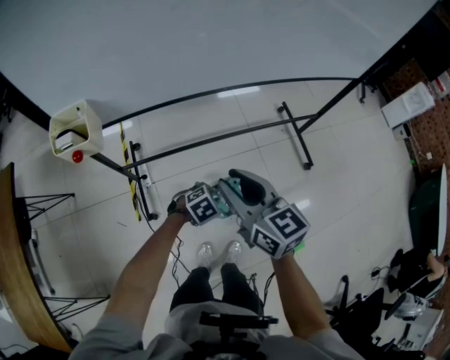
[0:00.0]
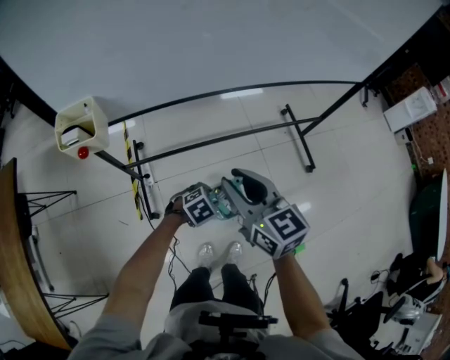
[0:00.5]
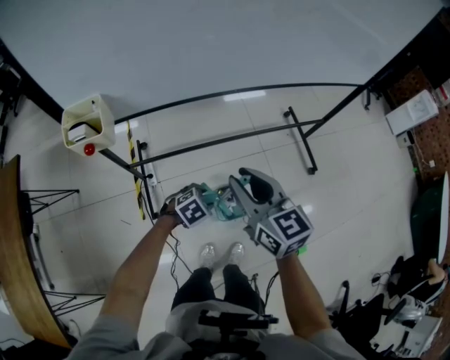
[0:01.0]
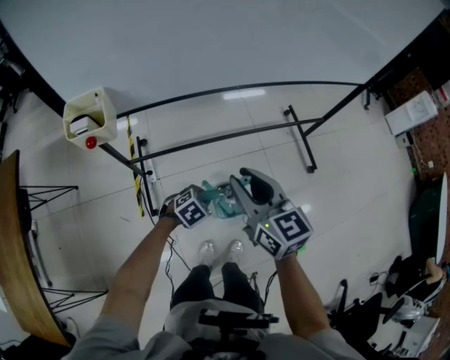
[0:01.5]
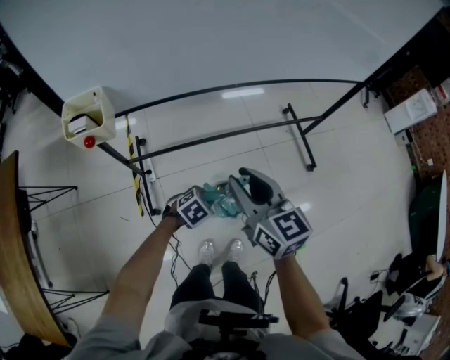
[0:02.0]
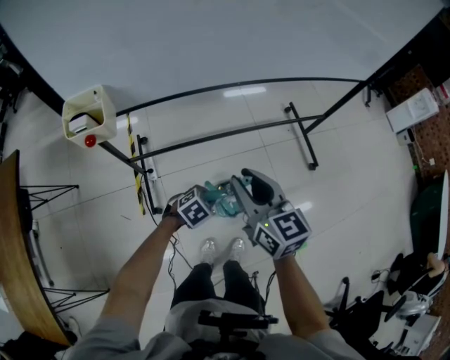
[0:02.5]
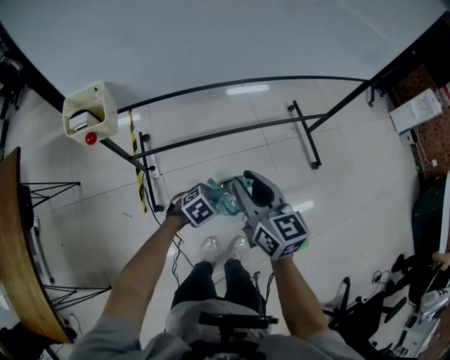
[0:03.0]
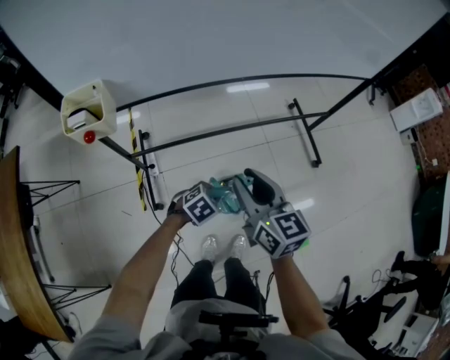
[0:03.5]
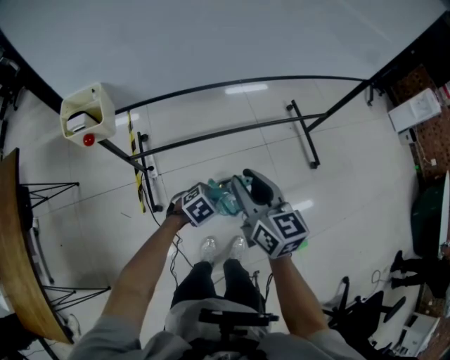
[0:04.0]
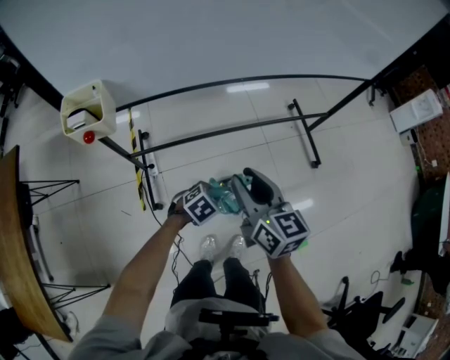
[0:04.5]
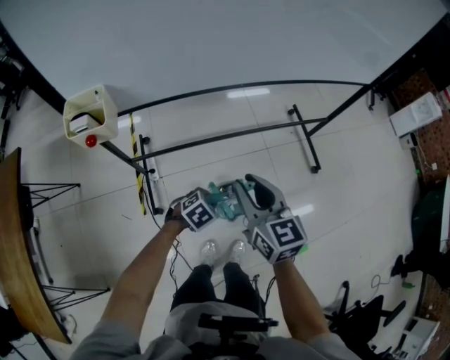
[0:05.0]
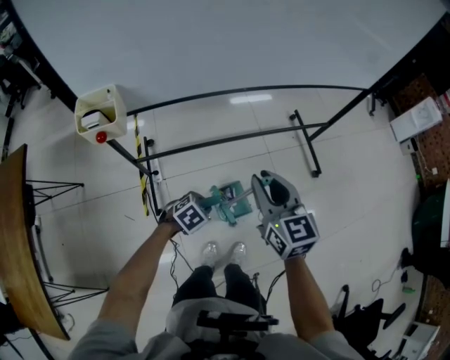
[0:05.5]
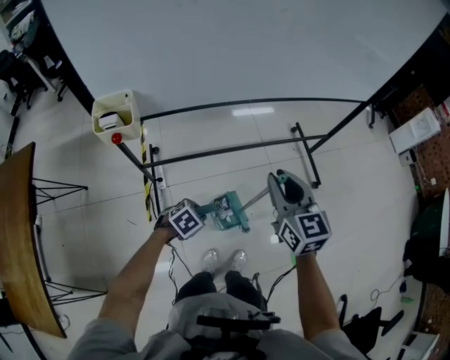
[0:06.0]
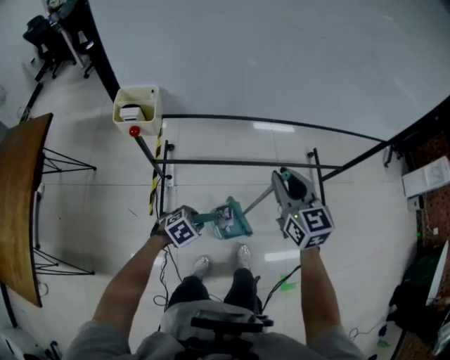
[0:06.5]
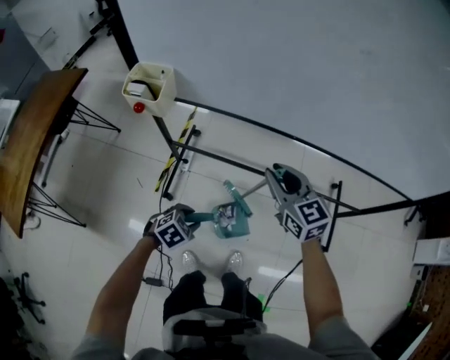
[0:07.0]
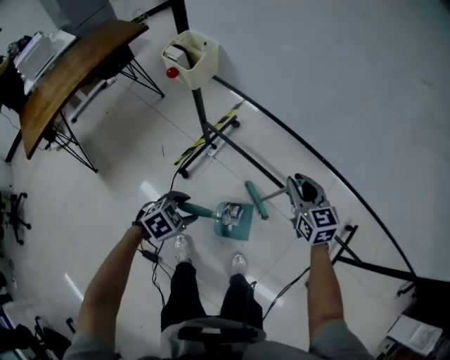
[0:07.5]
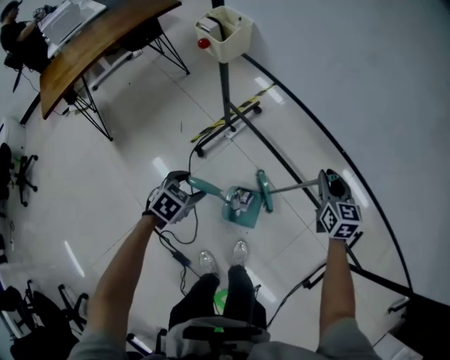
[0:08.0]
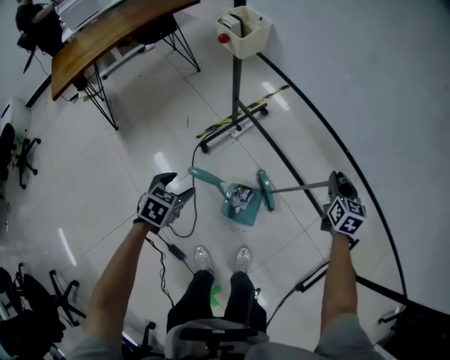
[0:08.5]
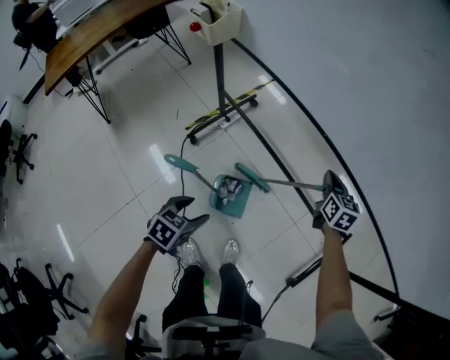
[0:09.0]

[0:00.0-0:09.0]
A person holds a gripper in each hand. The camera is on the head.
0:00.0 to 0:02.0: The left gripper ends up roughly 5 cm from where it was.
0:02.0 to 0:04.5: The grippers move only a little.
0:04.5 to 0:07.0: The left gripper rotates approximately 30 degrees, while the right gripper moves about 15 cm, and changes its angle by roughly 50 degrees.
0:07.0 to 0:09.0: The left gripper shifts by approximately 15 cm, twists some 50 degrees counterclockwise, seen from behind, and opens its fingers. Meanwhile the right gripper shifts by approximately 25 cm, and closes.

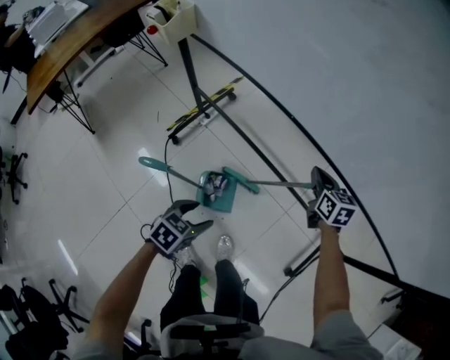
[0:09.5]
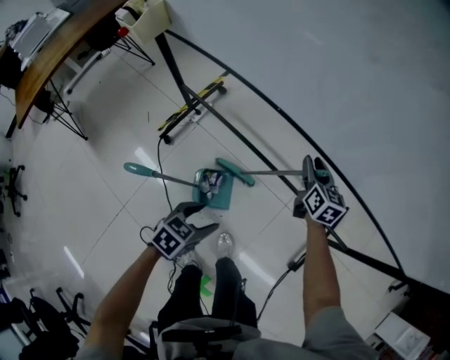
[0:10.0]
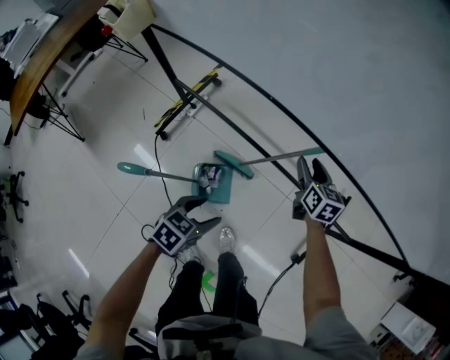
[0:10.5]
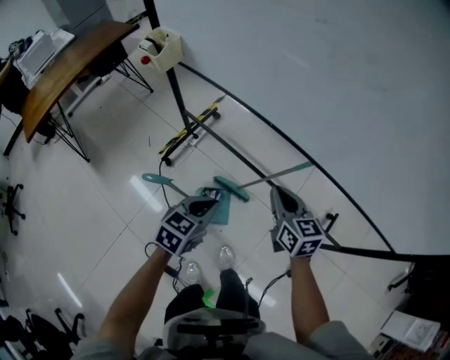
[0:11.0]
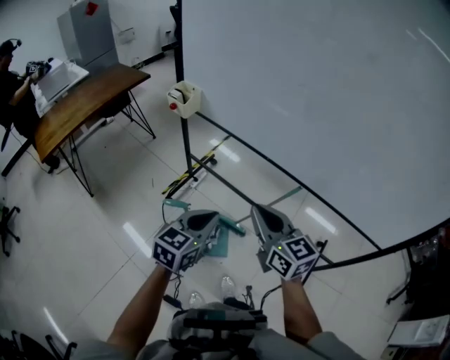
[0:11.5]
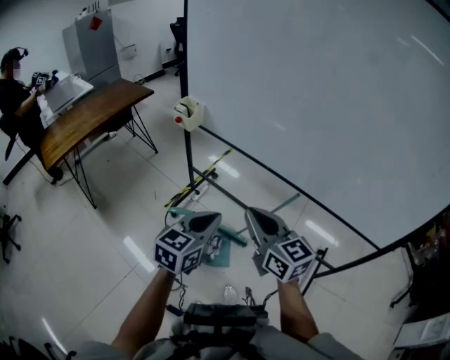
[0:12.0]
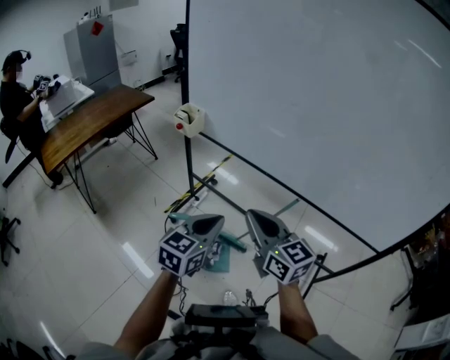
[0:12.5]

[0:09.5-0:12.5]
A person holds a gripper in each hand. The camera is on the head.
0:09.5 to 0:11.0: The right gripper travels backward, upward and to the left by approximately 20 cm, and opens and closes again; the left gripper travels upward and forward by roughly 15 cm, and closes.
0:11.0 to 0:12.5: The left gripper goes some 20 cm upward, and changes its angle by about 20 degrees; the right gripper heads upward, to the left and backward, covering about 30 cm, and rotates roughly 20 degrees.

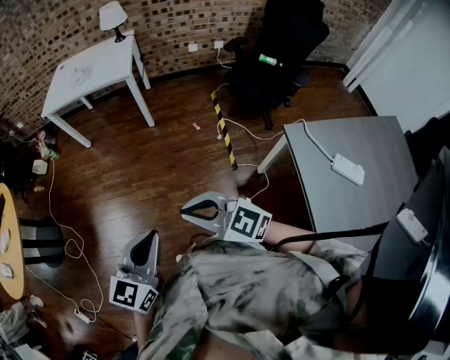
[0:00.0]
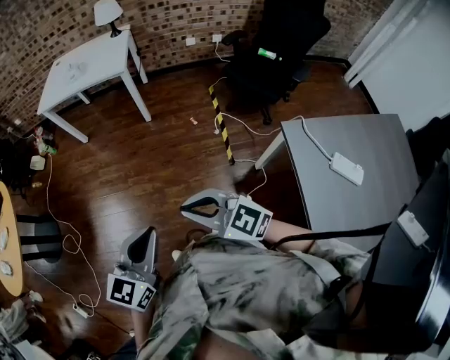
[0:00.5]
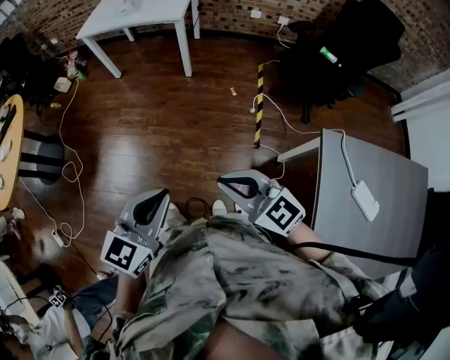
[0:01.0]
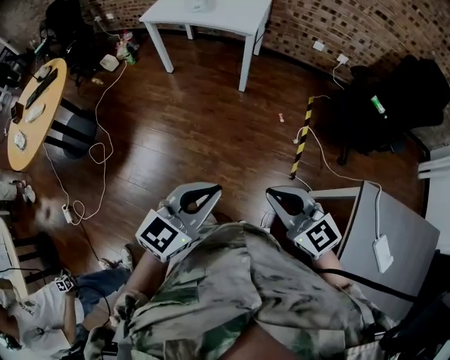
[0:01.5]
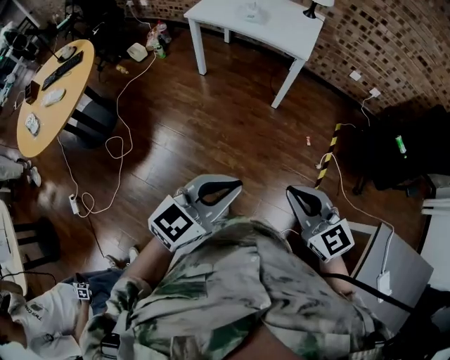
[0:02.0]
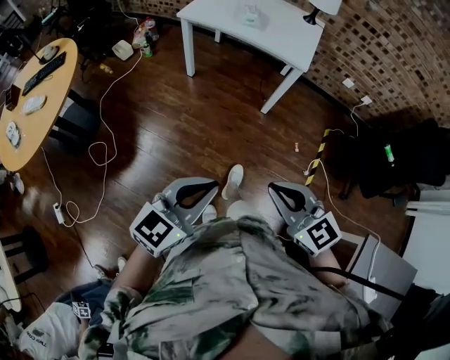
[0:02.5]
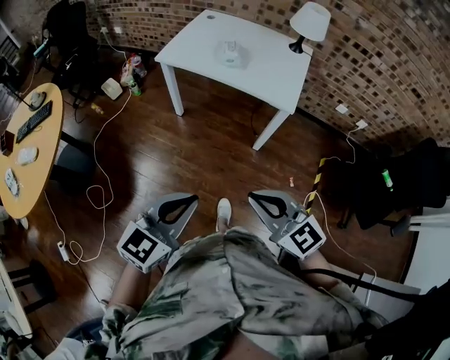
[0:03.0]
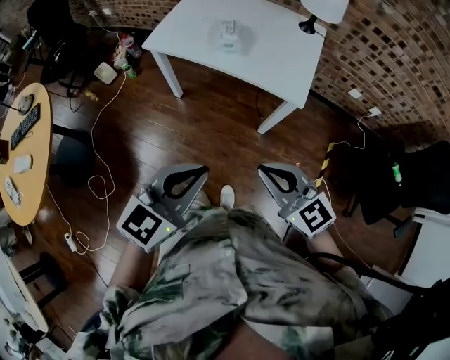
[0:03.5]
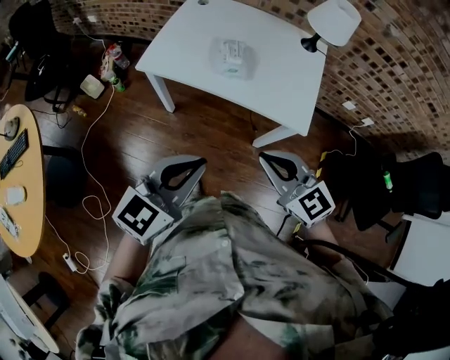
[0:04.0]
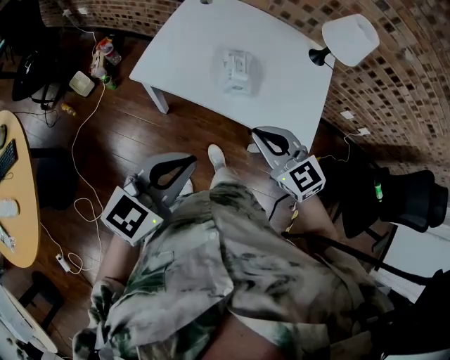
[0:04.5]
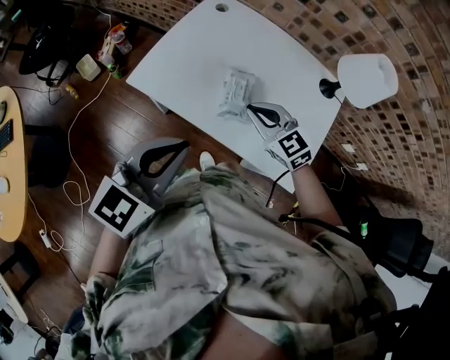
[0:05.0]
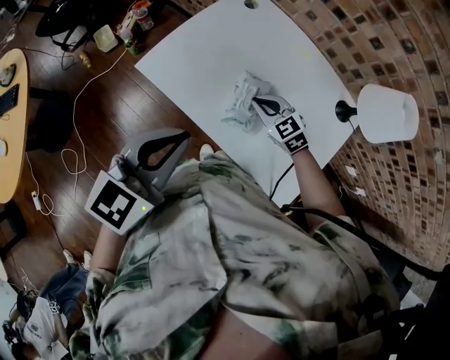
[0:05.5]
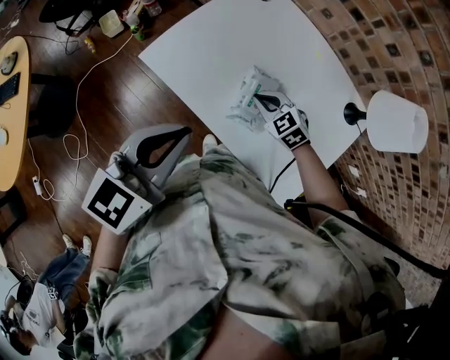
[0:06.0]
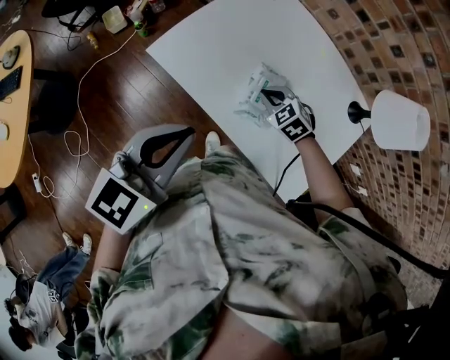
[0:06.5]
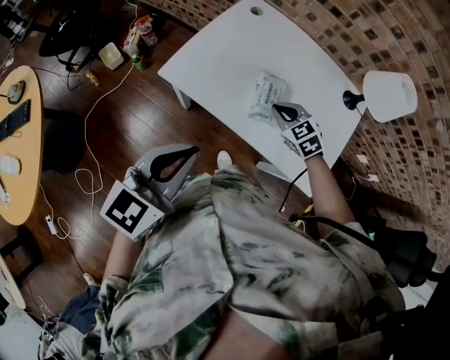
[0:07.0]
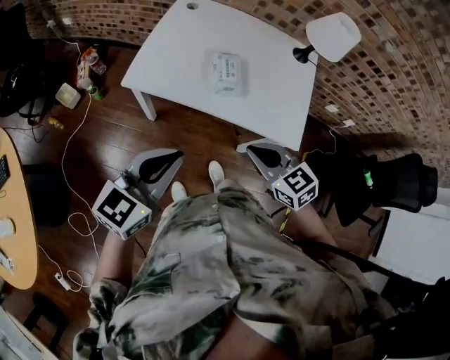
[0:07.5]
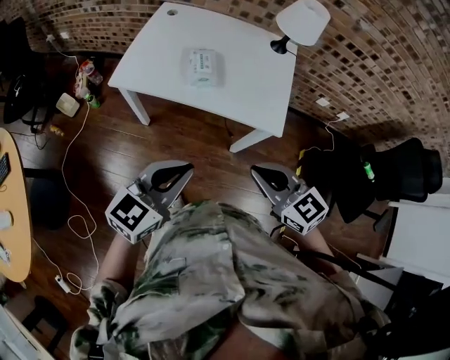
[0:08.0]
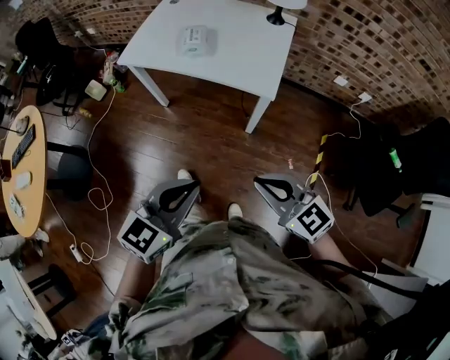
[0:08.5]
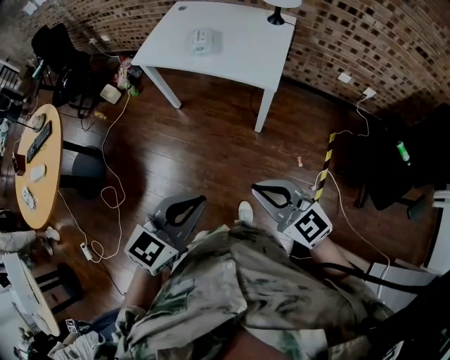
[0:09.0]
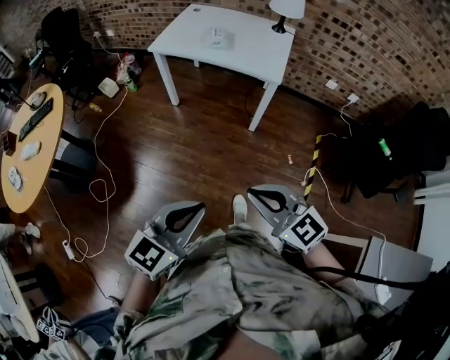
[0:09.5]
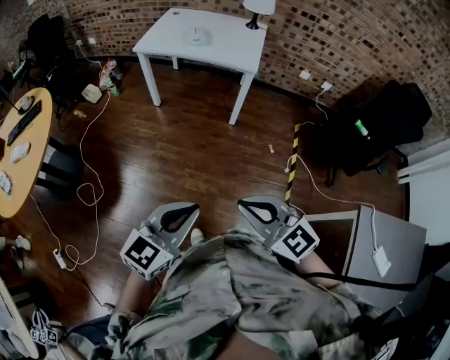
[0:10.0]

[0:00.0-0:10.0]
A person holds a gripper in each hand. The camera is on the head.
0:00.0 to 0:02.0: Both grippers travel together forward and to the left, some 20 cm.
0:02.0 to 0:04.0: The two grippers travel together, forward, roughly 60 cm.
0:04.0 to 0:06.0: The left gripper moves approximately 30 cm, and swivels some 30 degrees; the right gripper moves some 50 cm, and rotates approximately 40 degrees.
0:06.0 to 0:08.0: The left gripper moves some 25 cm, and turns by roughly 30 degrees; the right gripper shifts by some 50 cm, and turns by some 40 degrees.
0:08.0 to 0:10.0: The pair of grippers is taken backward, some 60 cm.

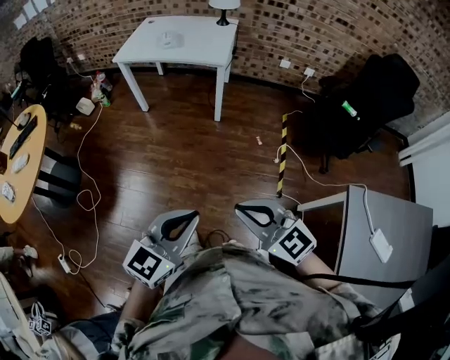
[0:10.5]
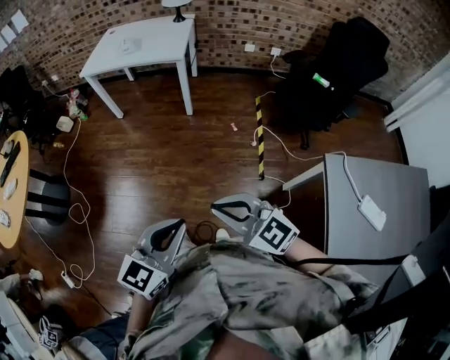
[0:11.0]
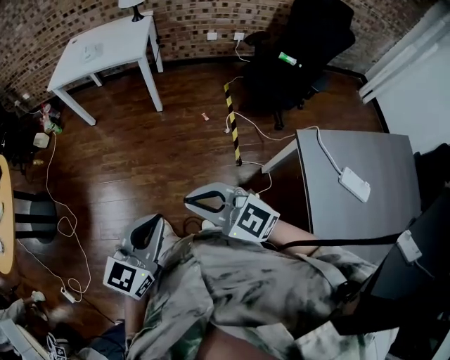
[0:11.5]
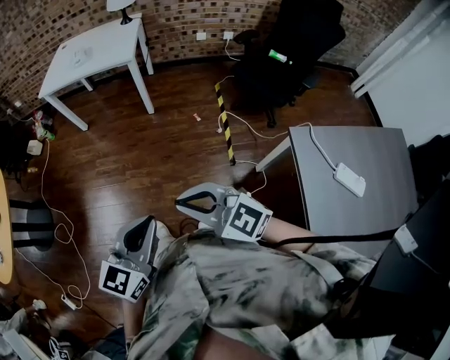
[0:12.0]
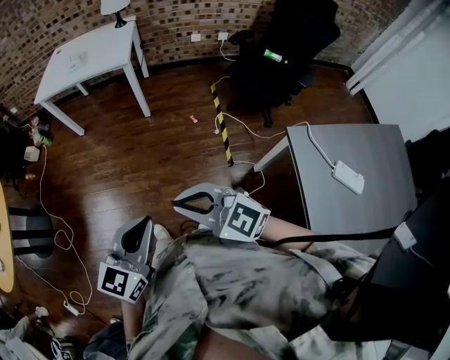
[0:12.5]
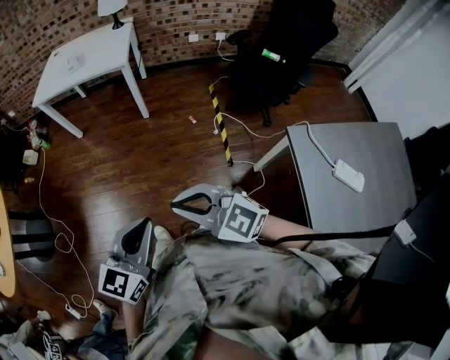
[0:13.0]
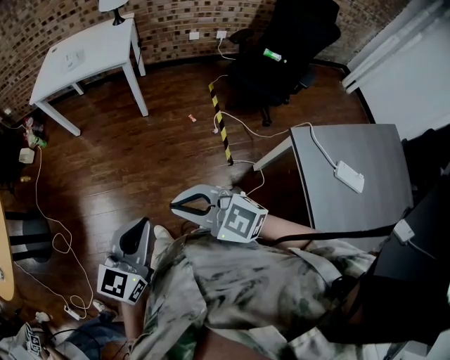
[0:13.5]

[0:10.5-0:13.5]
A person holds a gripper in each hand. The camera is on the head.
0:10.5 to 0:12.0: The left gripper shifts about 10 cm to the right and backward. The right gripper is displaced backward and to the right by about 10 cm.
0:12.0 to 0:13.5: The right gripper changes place by some 5 cm. Meanwhile the left gripper ends up about 5 cm from where it was.

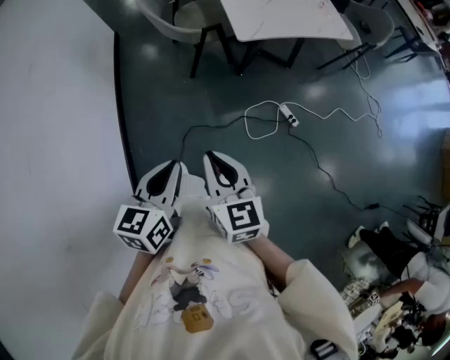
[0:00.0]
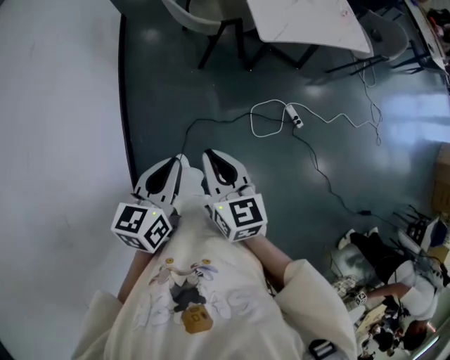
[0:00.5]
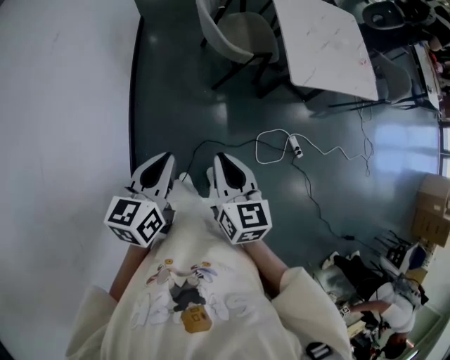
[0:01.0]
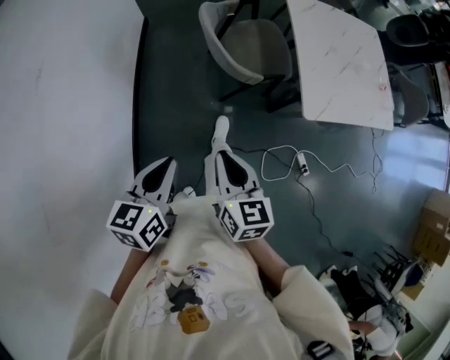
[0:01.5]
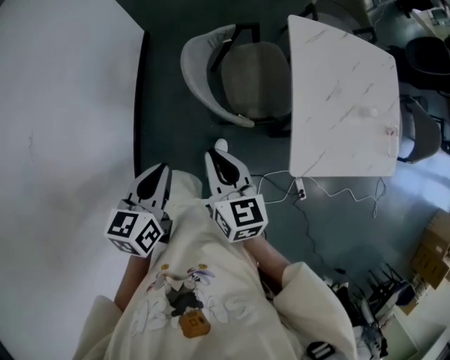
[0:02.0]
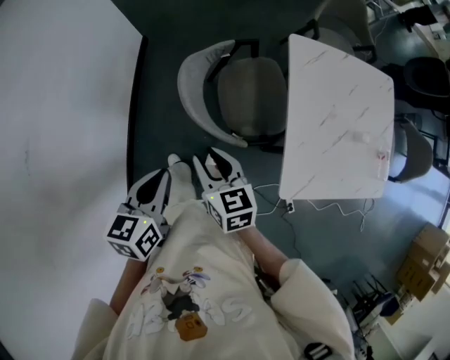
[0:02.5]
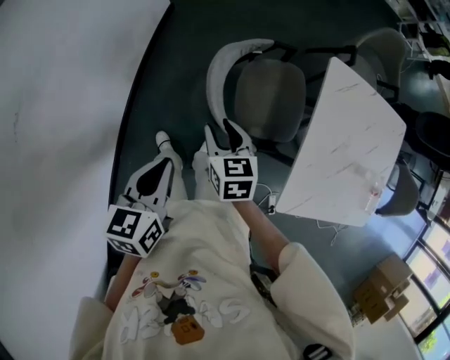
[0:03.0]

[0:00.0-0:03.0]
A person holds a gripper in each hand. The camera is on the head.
0:00.0 to 0:01.5: The two grippers go approximately 40 cm forward and to the left.
0:01.5 to 0:03.0: Both grippers move forward, some 35 cm. The right gripper changes its angle by about 30 degrees, and opens its fingers.
